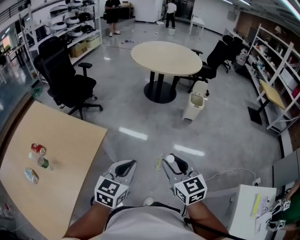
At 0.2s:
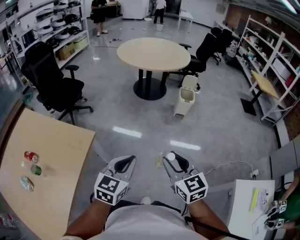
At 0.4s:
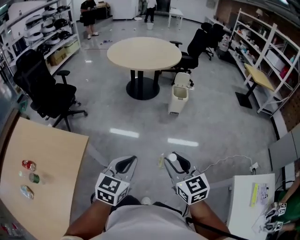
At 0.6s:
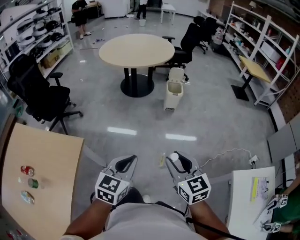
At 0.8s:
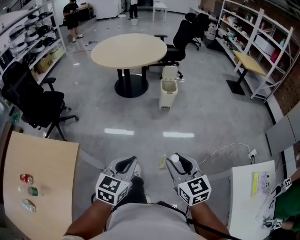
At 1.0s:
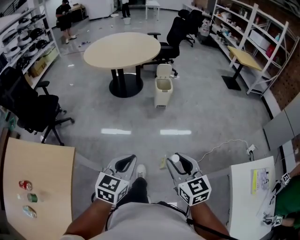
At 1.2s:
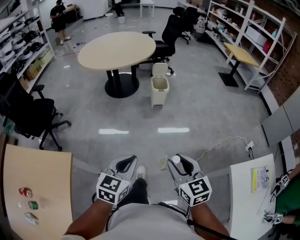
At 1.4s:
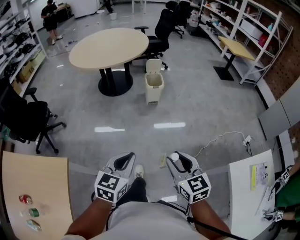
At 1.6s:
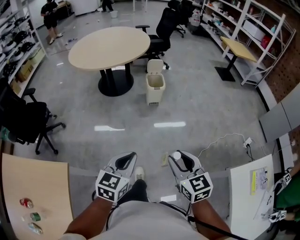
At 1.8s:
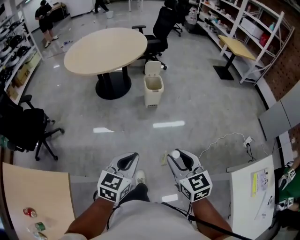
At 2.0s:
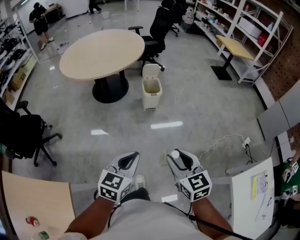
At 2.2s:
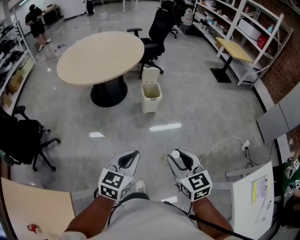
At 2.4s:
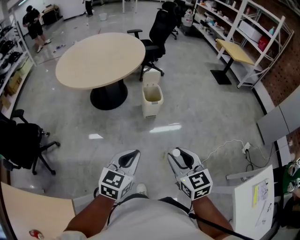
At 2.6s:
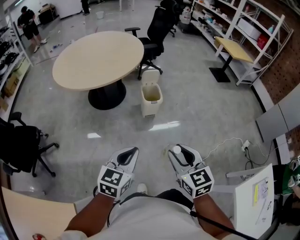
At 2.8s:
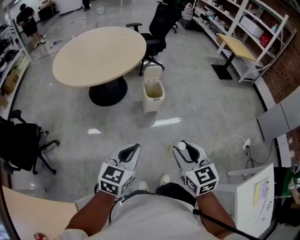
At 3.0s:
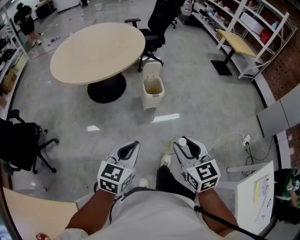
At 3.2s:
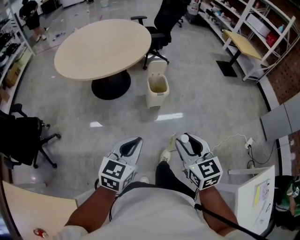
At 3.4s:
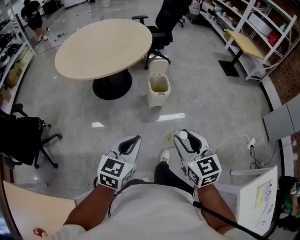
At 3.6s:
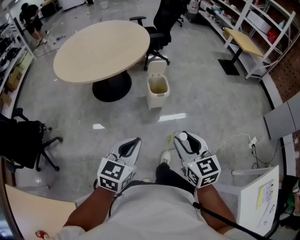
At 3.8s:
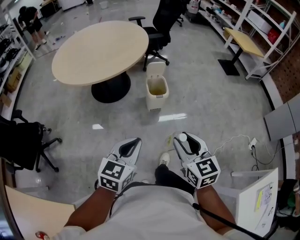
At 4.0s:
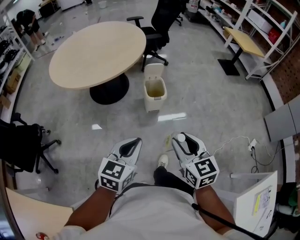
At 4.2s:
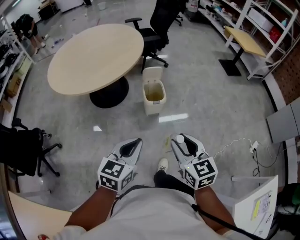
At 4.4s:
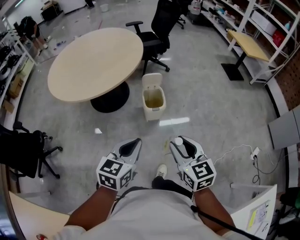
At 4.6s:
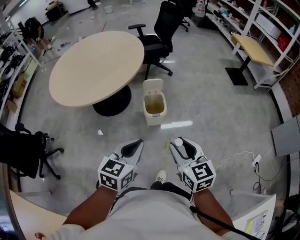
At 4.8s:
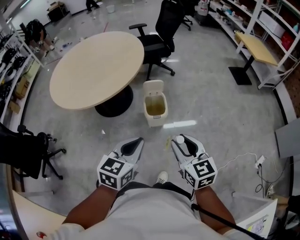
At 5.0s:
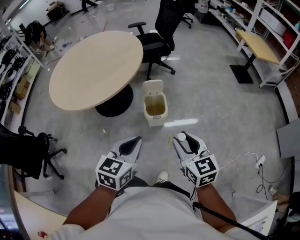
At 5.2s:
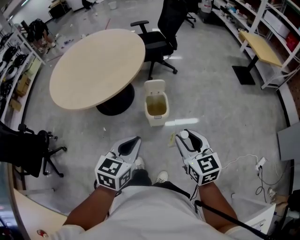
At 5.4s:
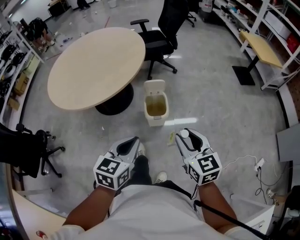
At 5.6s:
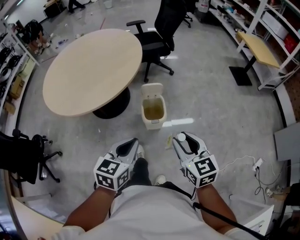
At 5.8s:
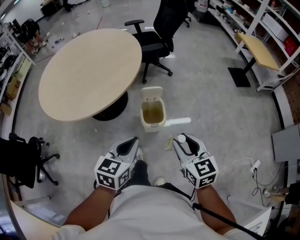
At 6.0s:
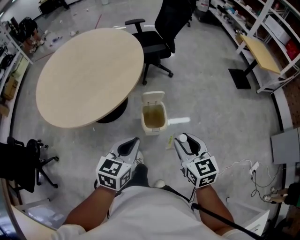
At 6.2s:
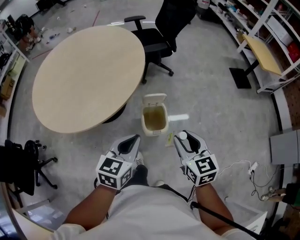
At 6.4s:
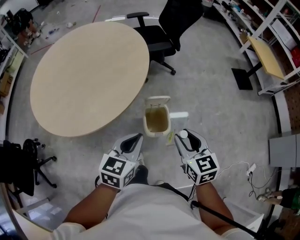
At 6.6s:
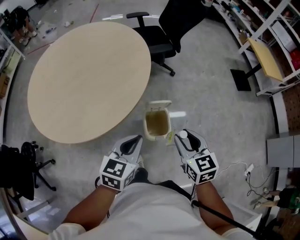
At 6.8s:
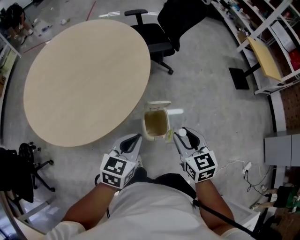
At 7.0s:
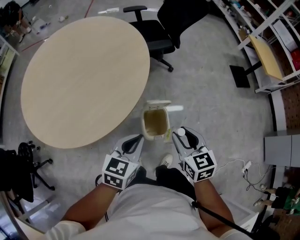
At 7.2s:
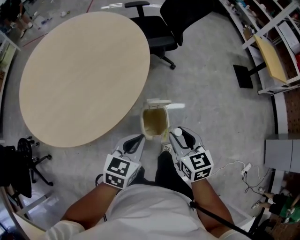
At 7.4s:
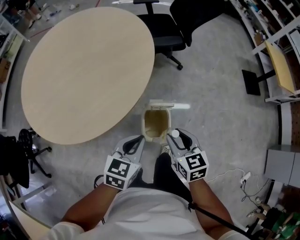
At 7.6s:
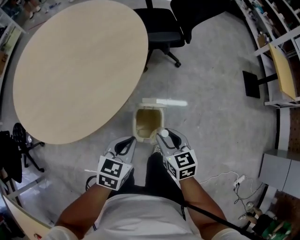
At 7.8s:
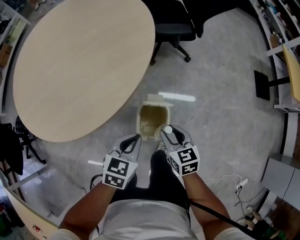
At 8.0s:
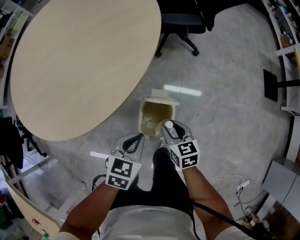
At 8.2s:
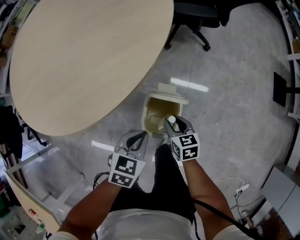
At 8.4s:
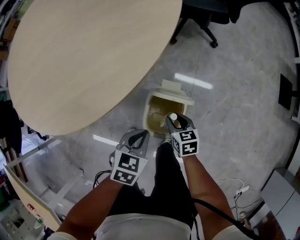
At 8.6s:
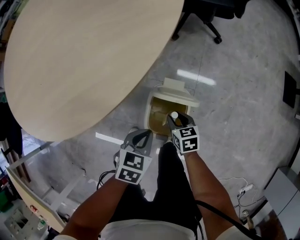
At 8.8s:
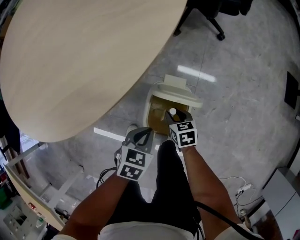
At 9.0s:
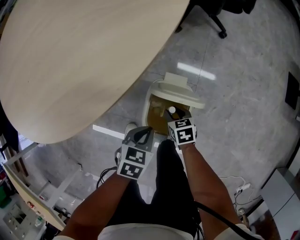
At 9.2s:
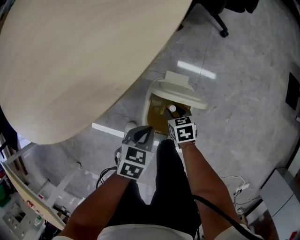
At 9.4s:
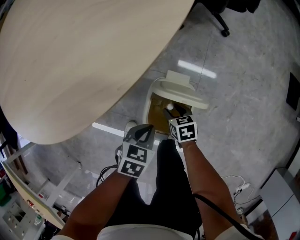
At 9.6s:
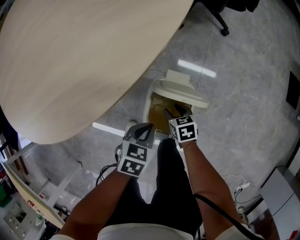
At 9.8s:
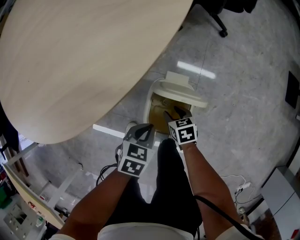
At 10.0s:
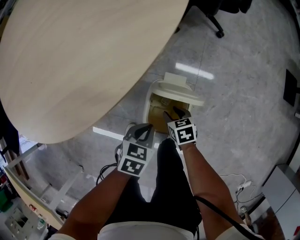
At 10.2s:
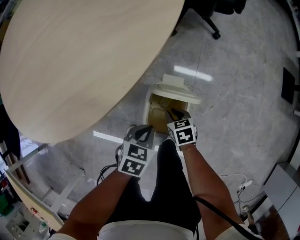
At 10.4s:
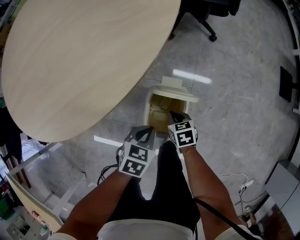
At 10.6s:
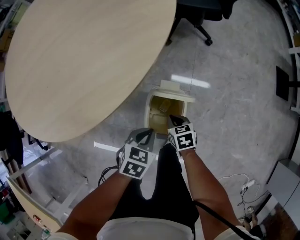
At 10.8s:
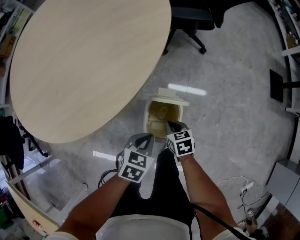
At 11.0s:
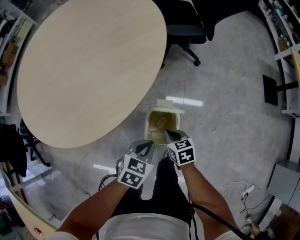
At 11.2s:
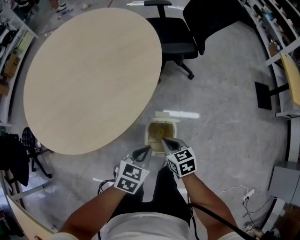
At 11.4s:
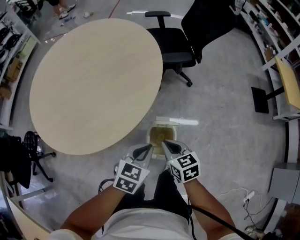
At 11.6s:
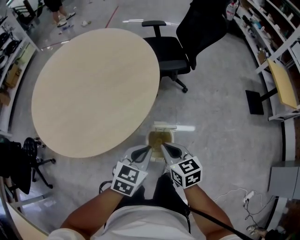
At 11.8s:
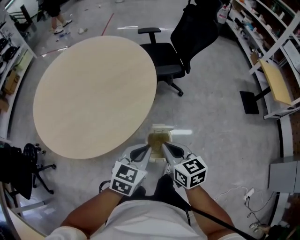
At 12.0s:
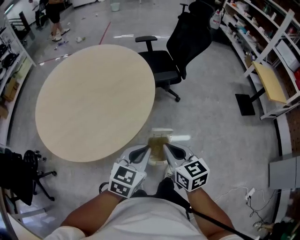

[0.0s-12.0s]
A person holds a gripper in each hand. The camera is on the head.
0.0s to 1.6s: The left gripper moves forward and to the right, approximately 25 cm, and swivels approximately 20 degrees, while the right gripper moves to the right and forward, some 20 cm, and turns by approximately 30 degrees.
1.6s to 3.0s: Both grippers travel together forward, about 20 cm.
3.0s to 4.4s: The right gripper moves forward, some 15 cm, while the left gripper shifts approximately 15 cm forward and to the right.
4.4s to 6.0s: The grippers both shift forward by about 20 cm.
6.0s to 7.6s: Both grippers travel together forward and downward, some 20 cm.
7.6s to 9.0s: The two grippers go approximately 30 cm downward. The right gripper swivels approximately 30 degrees; the left gripper changes its angle by about 20 degrees.
9.0s to 10.4s: The right gripper closes.
10.4s to 12.0s: The two grippers go some 40 cm upward. The left gripper tips its fingers upward by about 30 degrees, while the right gripper points its fingers approximately 30 degrees further upward.

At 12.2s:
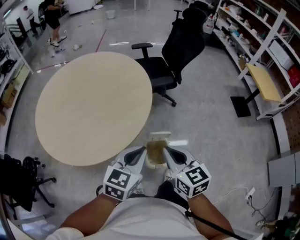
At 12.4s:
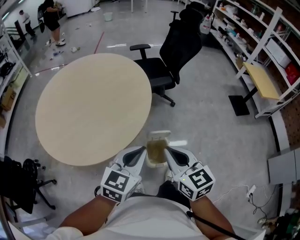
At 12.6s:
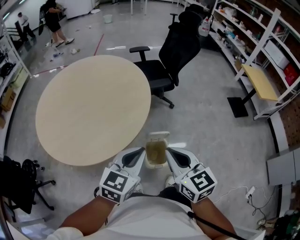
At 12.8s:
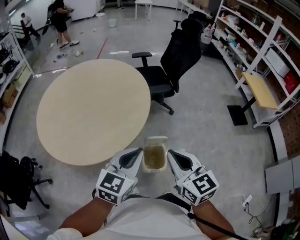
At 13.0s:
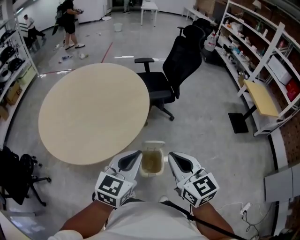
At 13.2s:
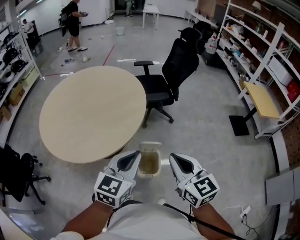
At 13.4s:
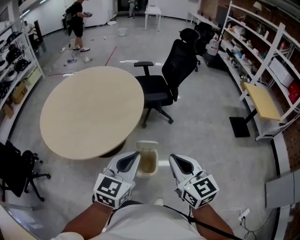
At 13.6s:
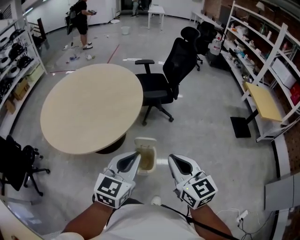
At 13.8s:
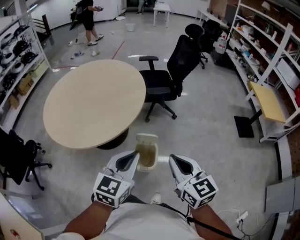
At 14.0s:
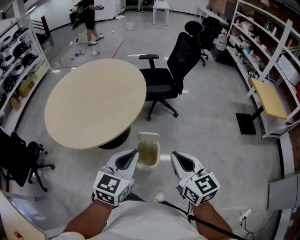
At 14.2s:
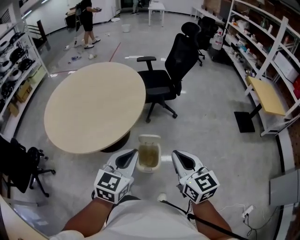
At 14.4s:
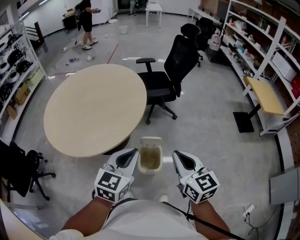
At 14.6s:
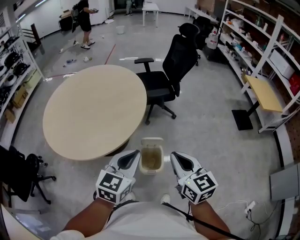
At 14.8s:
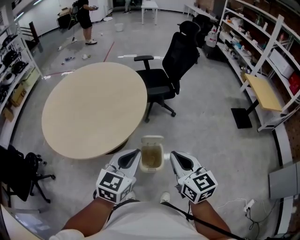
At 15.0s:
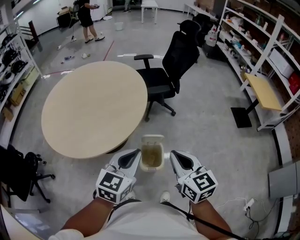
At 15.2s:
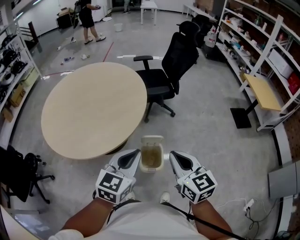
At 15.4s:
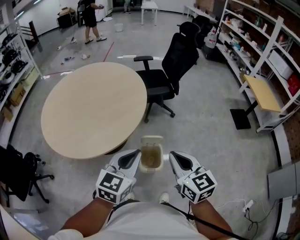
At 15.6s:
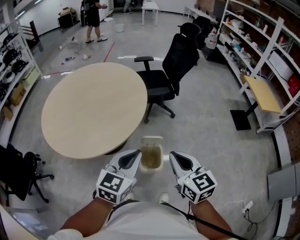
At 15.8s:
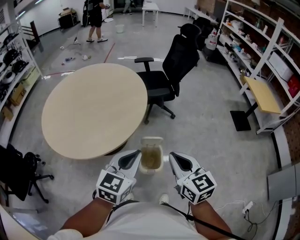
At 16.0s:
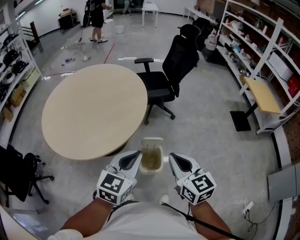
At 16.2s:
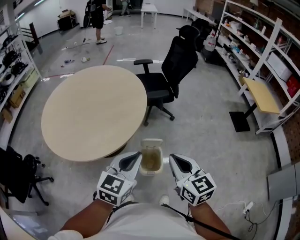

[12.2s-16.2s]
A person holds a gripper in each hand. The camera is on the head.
12.2s to 13.6s: The right gripper moves to the right, upward and backward, about 15 cm; the left gripper heads to the right, backward and upward, covering approximately 10 cm.
13.6s to 14.8s: The left gripper changes place by about 5 cm.
14.8s to 16.2s: Both grippers stay put.

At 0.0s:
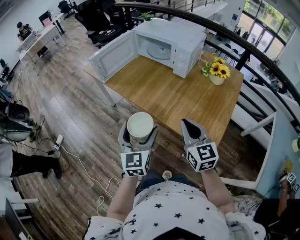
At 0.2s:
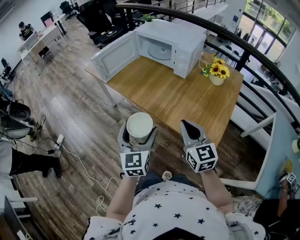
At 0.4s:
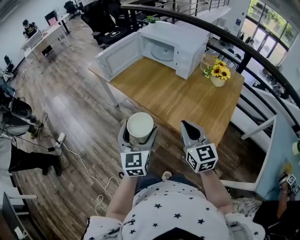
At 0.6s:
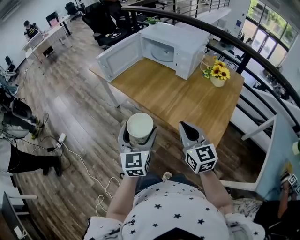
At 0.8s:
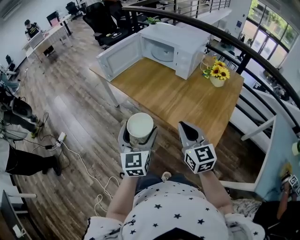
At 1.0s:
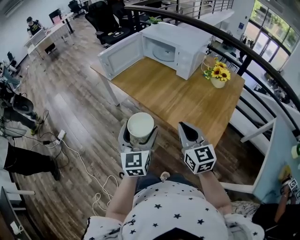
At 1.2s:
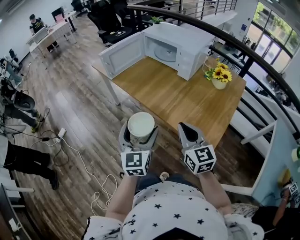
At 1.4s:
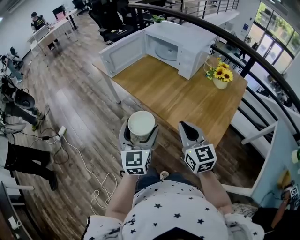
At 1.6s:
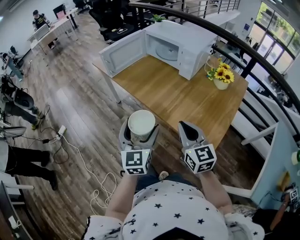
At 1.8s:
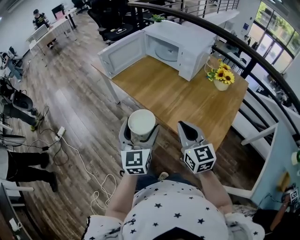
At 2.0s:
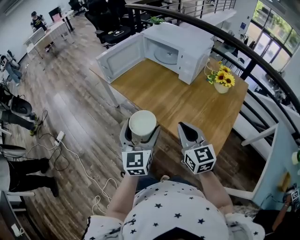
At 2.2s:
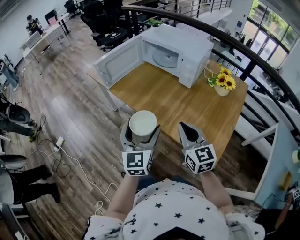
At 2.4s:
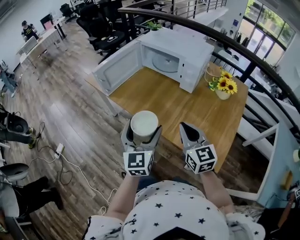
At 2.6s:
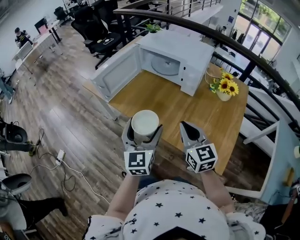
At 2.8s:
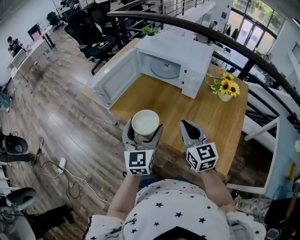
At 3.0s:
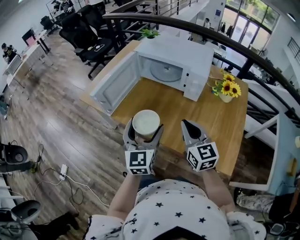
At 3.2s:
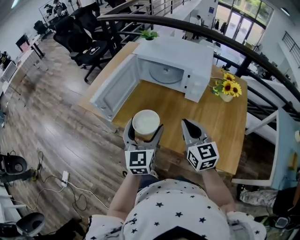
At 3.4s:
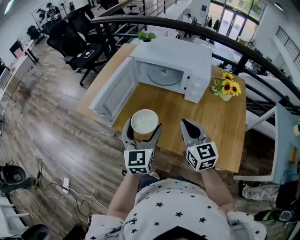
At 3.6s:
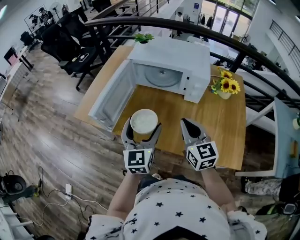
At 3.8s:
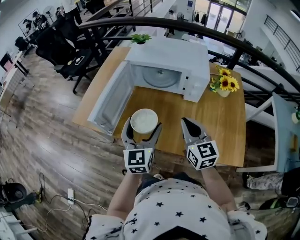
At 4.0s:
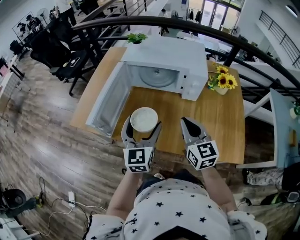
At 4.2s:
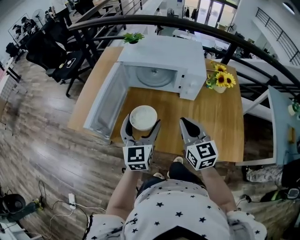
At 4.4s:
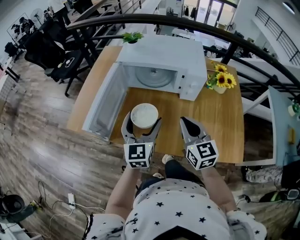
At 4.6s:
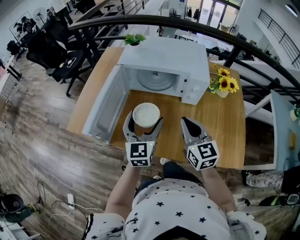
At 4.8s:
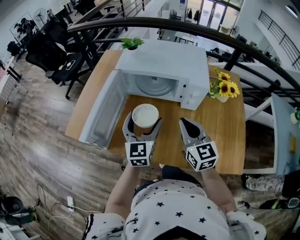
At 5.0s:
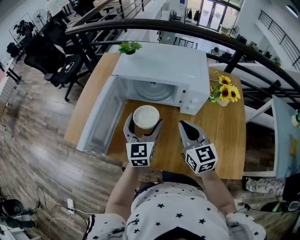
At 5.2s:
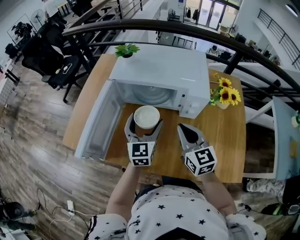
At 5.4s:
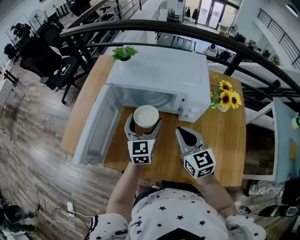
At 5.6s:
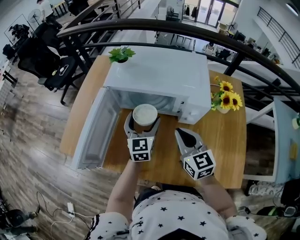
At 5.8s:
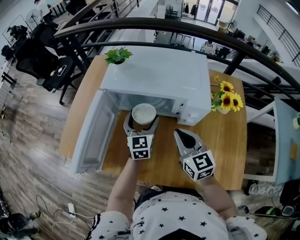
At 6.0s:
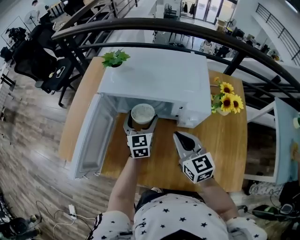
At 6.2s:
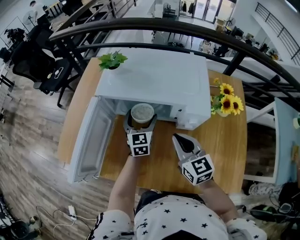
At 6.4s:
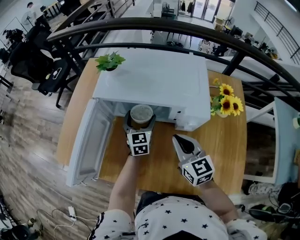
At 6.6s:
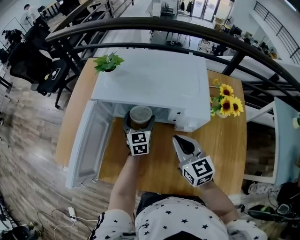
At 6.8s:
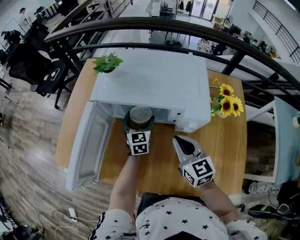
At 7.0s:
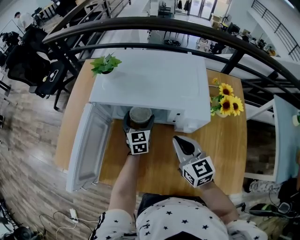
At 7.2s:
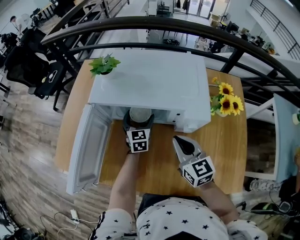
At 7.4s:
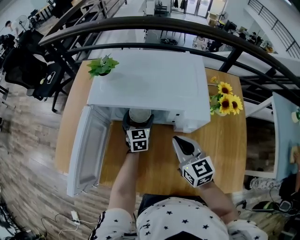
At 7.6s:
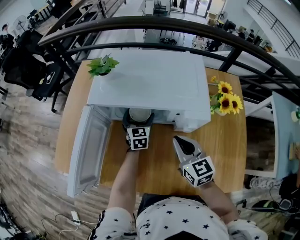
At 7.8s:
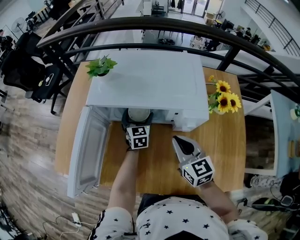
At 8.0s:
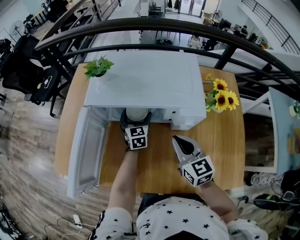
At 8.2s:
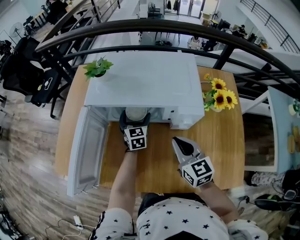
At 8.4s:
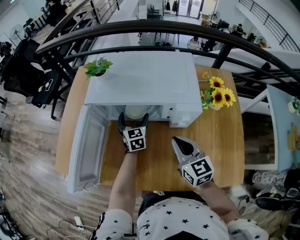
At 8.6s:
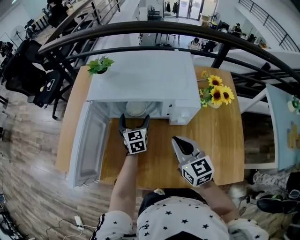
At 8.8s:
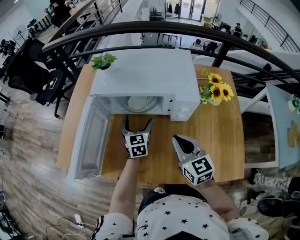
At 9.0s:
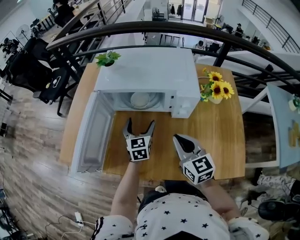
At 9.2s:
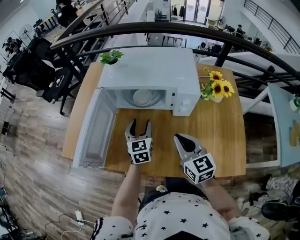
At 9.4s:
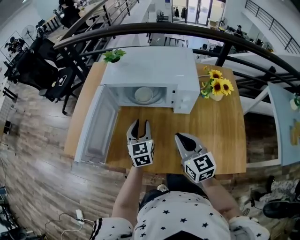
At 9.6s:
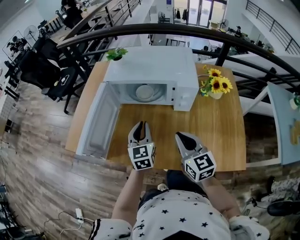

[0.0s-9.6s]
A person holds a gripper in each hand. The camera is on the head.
0.0s to 1.6s: There are only small adjustments of the grippers.
1.6s to 3.2s: The two grippers go some 25 cm forward.
3.2s to 4.8s: The right gripper shifts approximately 10 cm forward, while the left gripper goes some 15 cm forward.
4.8s to 6.4s: The right gripper is displaced forward and downward by roughly 10 cm. Meanwhile the left gripper travels forward and downward by approximately 25 cm.
6.4s to 8.0s: The left gripper changes place by some 5 cm.
8.0s to 9.6s: The right gripper goes some 15 cm backward, while the left gripper moves backward and upward, approximately 25 cm, and closes its fingers.
